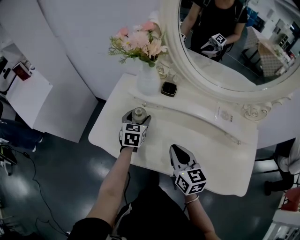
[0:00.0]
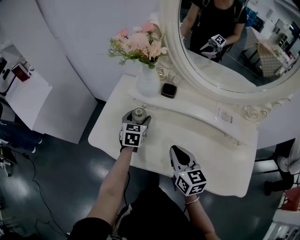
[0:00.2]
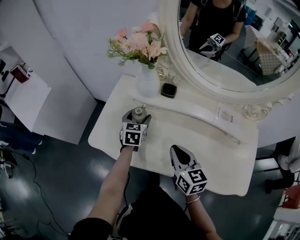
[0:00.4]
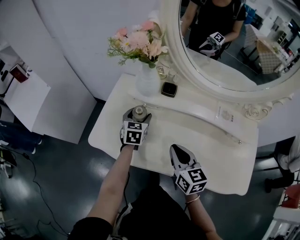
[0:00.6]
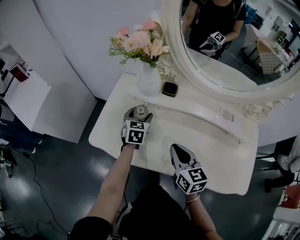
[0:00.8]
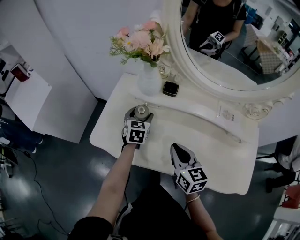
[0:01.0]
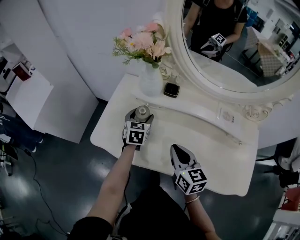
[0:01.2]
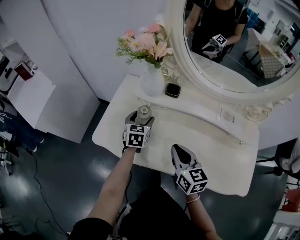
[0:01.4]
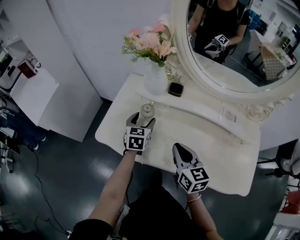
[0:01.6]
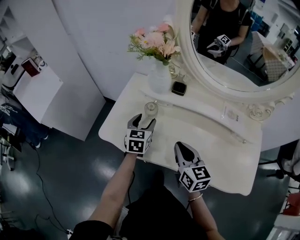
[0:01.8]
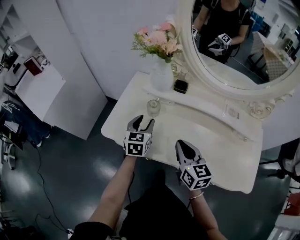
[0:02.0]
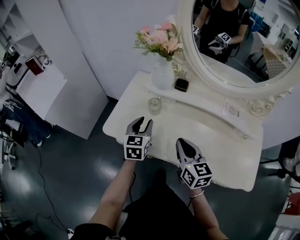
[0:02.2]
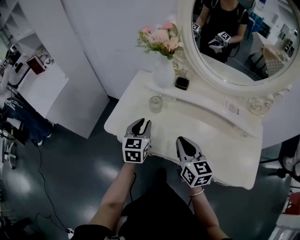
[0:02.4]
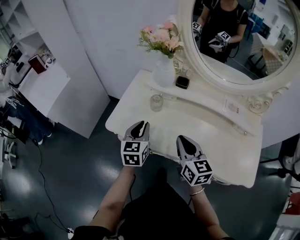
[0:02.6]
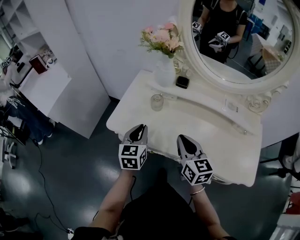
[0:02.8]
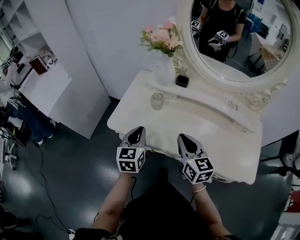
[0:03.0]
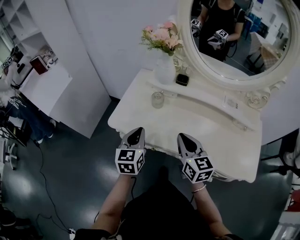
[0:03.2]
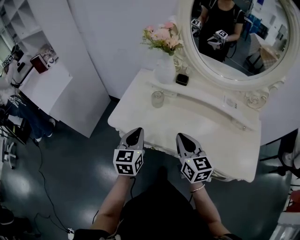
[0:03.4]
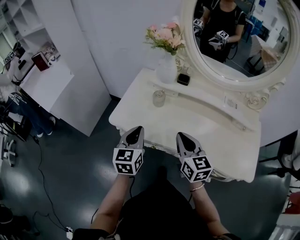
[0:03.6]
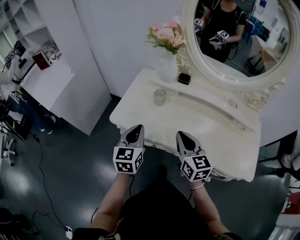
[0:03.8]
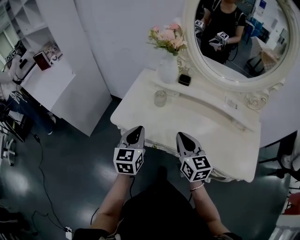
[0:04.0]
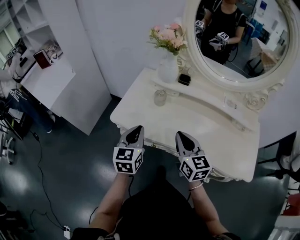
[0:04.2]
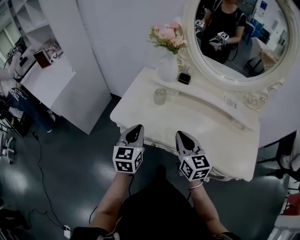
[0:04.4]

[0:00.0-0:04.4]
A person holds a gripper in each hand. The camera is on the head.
0:00.0 to 0:01.4: The grippers stay close to where they were, moving slightly.
0:01.4 to 0:03.0: The right gripper is displaced backward by about 5 cm. Meanwhile the left gripper heads backward, upward and to the left, covering some 20 cm, and closes its fingers.
0:03.0 to 0:04.4: The left gripper shifts by some 5 cm.

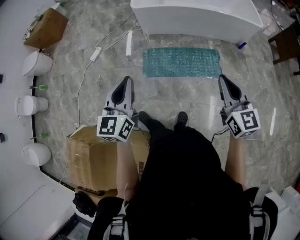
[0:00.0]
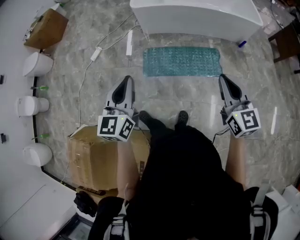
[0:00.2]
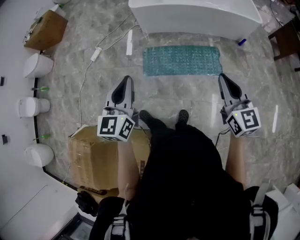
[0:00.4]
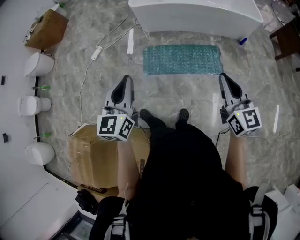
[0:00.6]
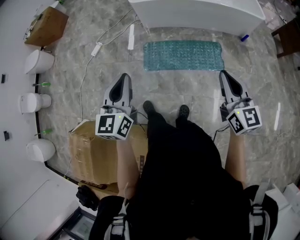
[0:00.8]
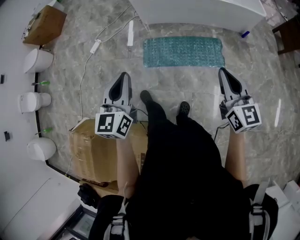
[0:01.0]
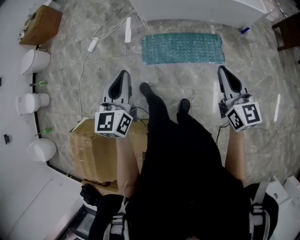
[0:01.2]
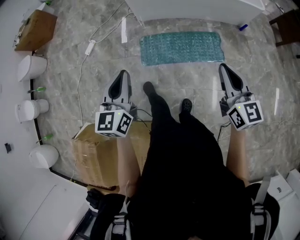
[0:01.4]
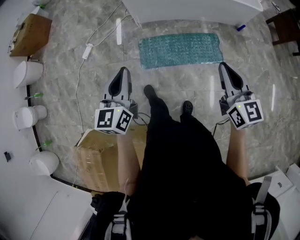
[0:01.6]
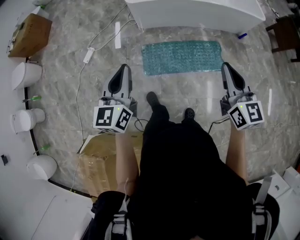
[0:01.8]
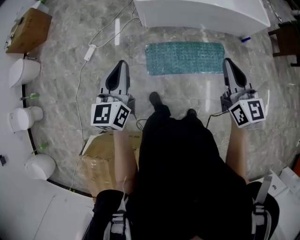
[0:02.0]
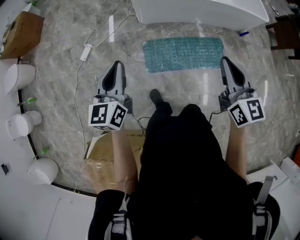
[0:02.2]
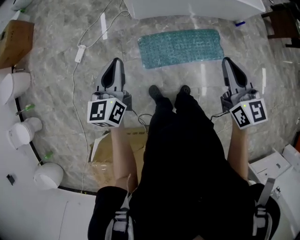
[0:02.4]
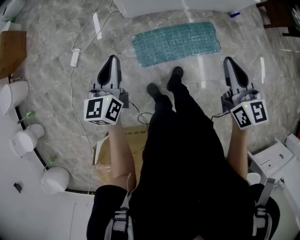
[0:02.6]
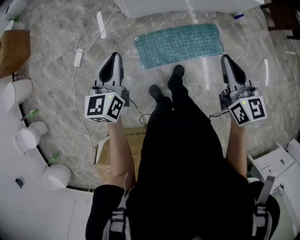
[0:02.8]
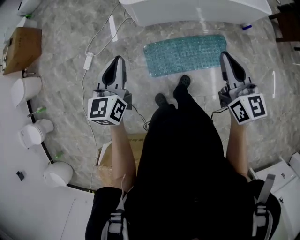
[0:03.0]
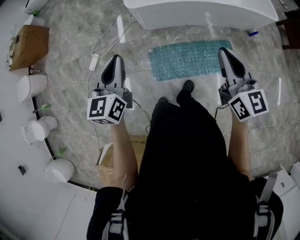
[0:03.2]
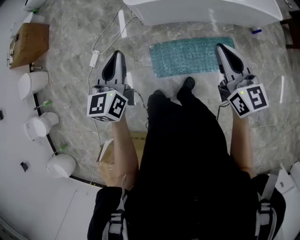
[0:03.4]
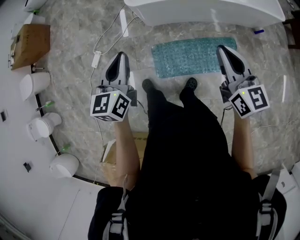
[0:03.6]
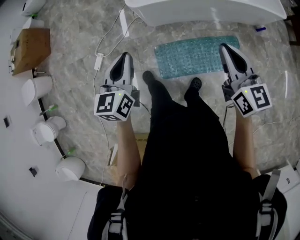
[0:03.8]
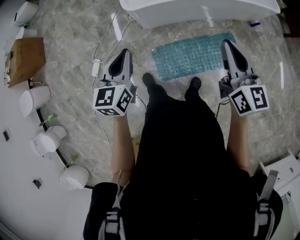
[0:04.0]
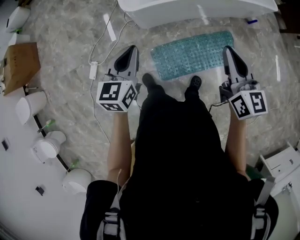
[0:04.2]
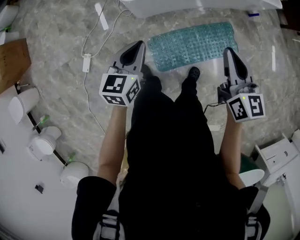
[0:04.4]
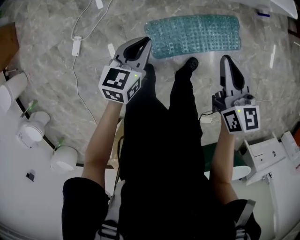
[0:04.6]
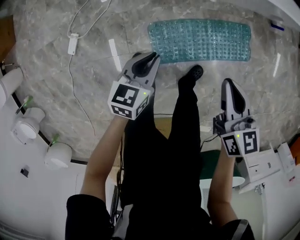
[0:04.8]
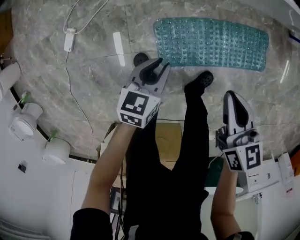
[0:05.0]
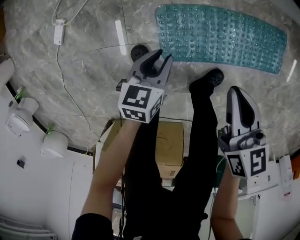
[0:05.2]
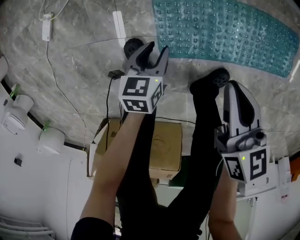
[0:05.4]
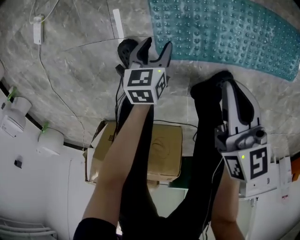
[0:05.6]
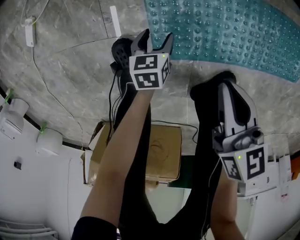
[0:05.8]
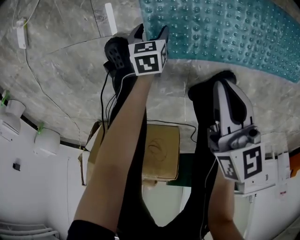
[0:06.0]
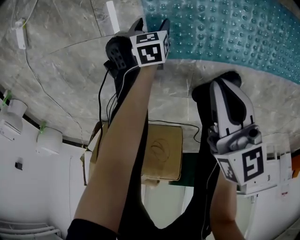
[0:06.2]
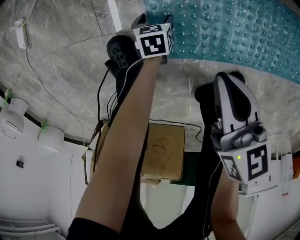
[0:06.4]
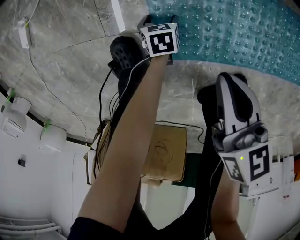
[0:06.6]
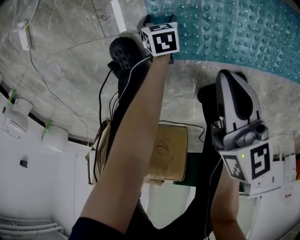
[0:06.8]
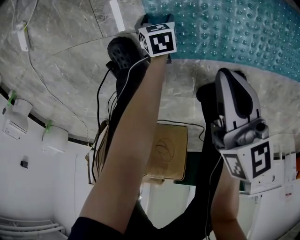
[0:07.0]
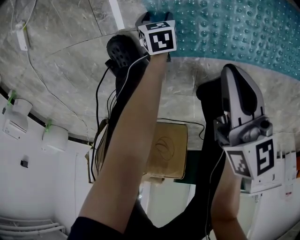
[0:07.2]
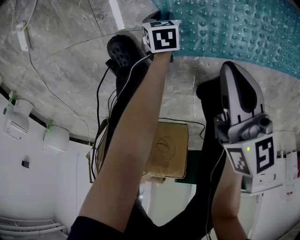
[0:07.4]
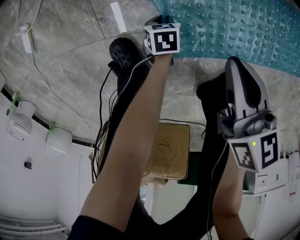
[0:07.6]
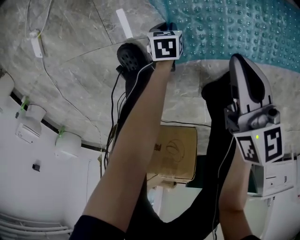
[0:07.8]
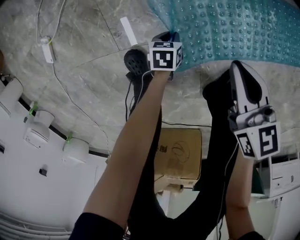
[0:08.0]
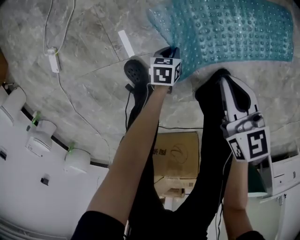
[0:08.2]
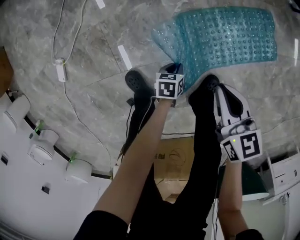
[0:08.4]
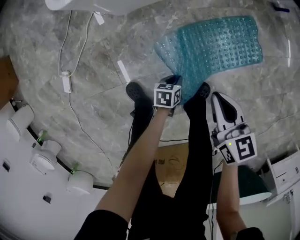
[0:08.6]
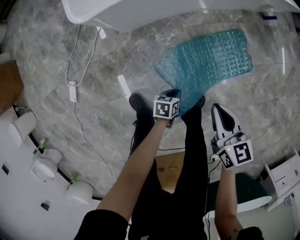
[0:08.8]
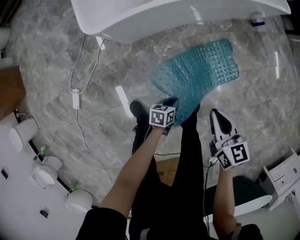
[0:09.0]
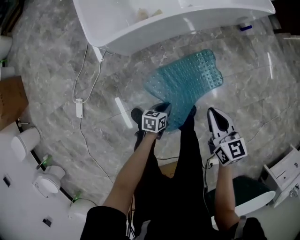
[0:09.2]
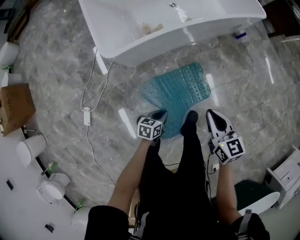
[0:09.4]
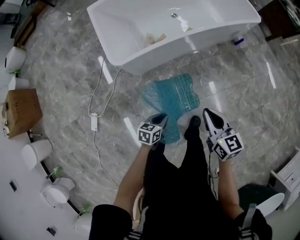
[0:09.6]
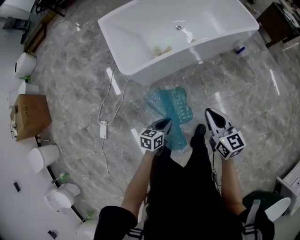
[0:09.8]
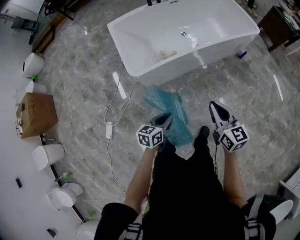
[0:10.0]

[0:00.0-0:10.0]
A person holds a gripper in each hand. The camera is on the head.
0:00.0 to 0:01.4: The left gripper shifts by approximately 5 cm.
0:01.4 to 0:02.8: Both grippers travel together forward and to the left, approximately 30 cm.
0:02.8 to 0:04.2: Both grippers travel together forward, approximately 20 cm.
0:04.2 to 0:05.8: Both grippers move downward, approximately 80 cm. The right gripper points its fingers roughly 30 degrees further downward; the left gripper tips its fingers downward by roughly 40 degrees, and opens.
0:05.8 to 0:07.2: The left gripper goes some 15 cm downward; the right gripper moves downward, some 5 cm.
0:07.2 to 0:08.6: The two grippers go about 35 cm upward. The left gripper rotates about 30 degrees, and closes up.
0:08.6 to 0:10.0: Both grippers travel together upward, roughly 50 cm. The left gripper rotates approximately 30 degrees; the right gripper turns by about 20 degrees.

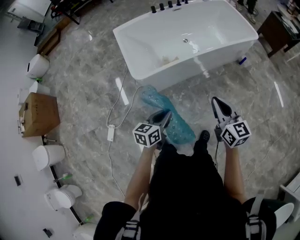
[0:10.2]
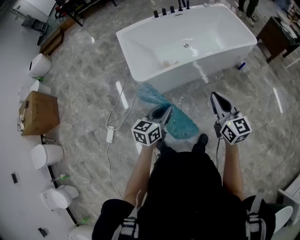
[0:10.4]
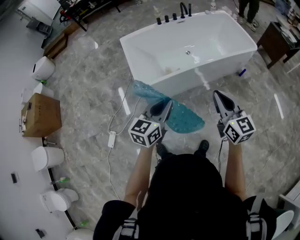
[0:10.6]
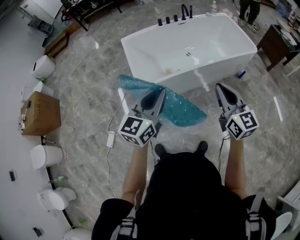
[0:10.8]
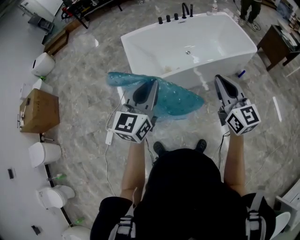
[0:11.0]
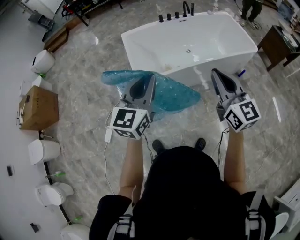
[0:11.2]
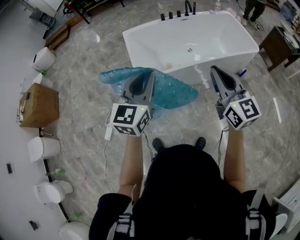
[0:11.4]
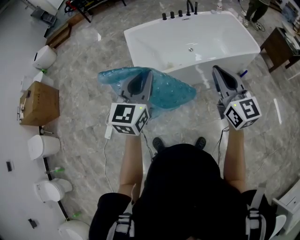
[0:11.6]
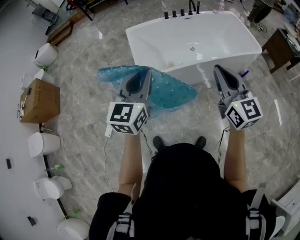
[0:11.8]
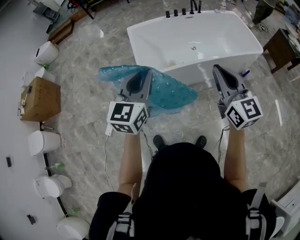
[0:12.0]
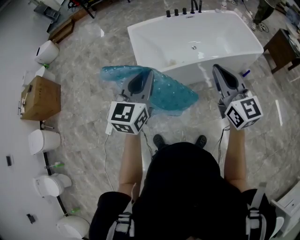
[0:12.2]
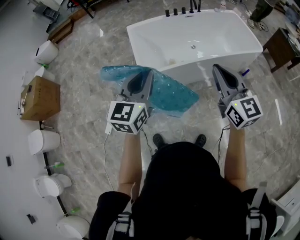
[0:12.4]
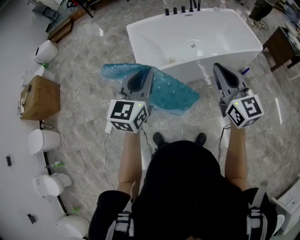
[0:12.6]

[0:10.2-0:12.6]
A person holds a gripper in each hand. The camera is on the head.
0:10.2 to 0:11.4: The right gripper goes about 20 cm upward, and turns by about 20 degrees. Meanwhile the left gripper shifts approximately 30 cm upward, and rotates about 40 degrees.
0:11.4 to 0:12.6: The grippers move only a little.

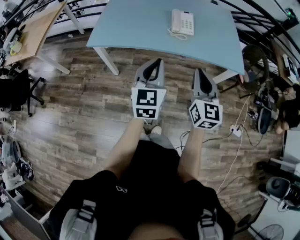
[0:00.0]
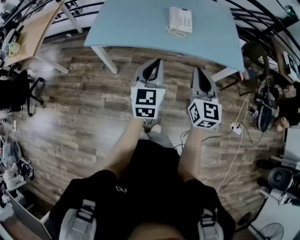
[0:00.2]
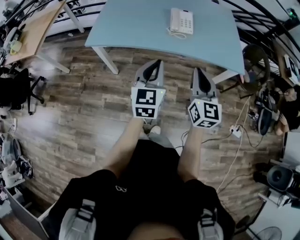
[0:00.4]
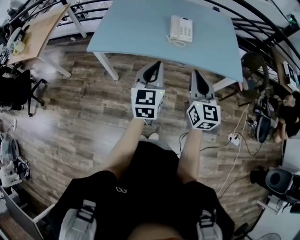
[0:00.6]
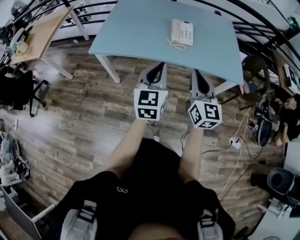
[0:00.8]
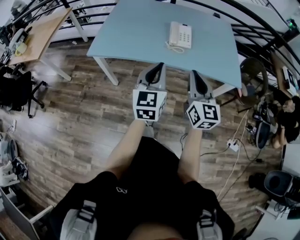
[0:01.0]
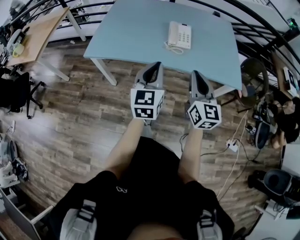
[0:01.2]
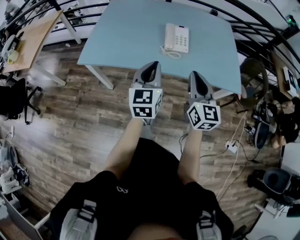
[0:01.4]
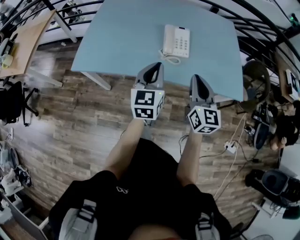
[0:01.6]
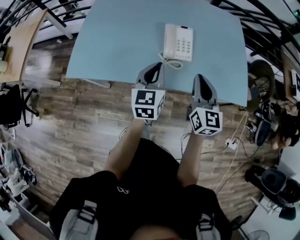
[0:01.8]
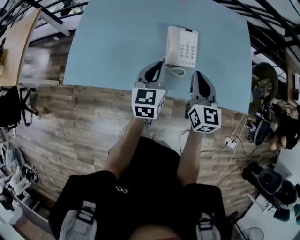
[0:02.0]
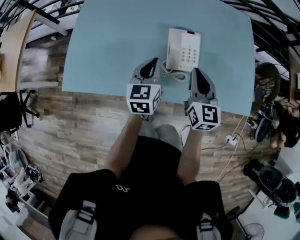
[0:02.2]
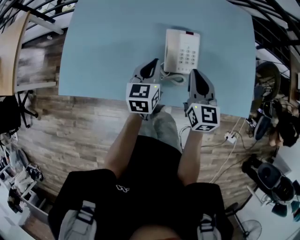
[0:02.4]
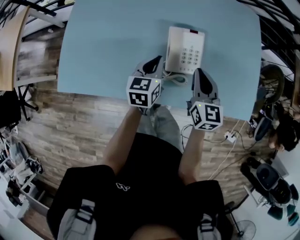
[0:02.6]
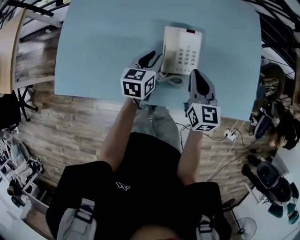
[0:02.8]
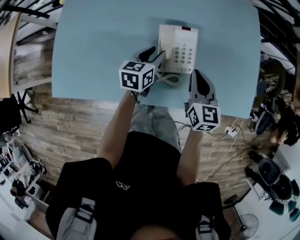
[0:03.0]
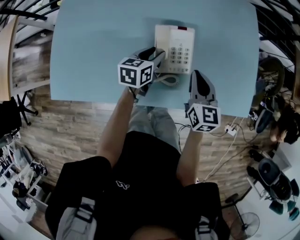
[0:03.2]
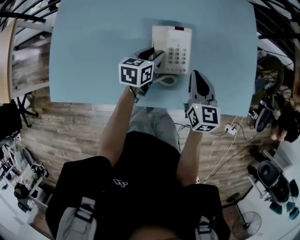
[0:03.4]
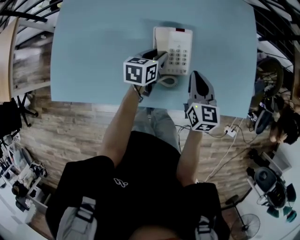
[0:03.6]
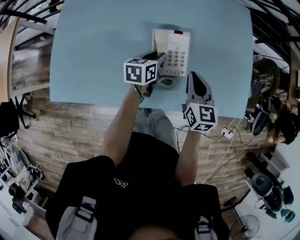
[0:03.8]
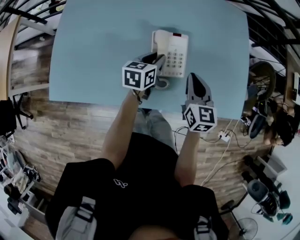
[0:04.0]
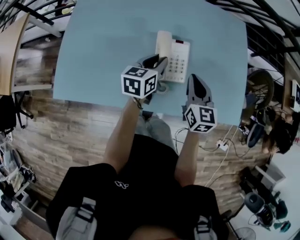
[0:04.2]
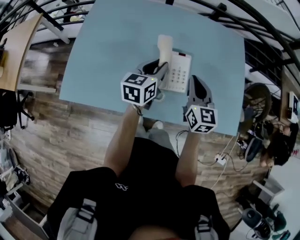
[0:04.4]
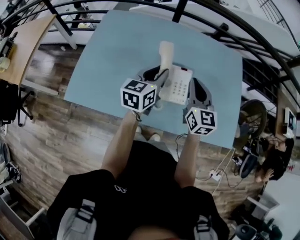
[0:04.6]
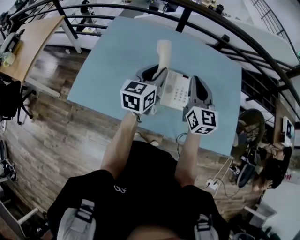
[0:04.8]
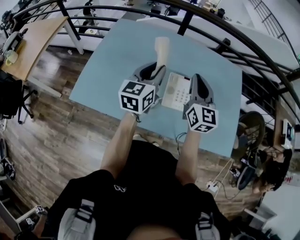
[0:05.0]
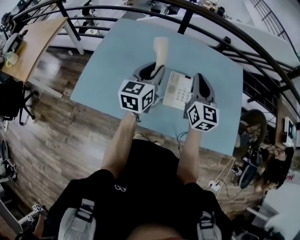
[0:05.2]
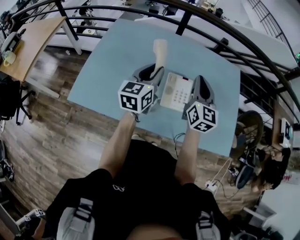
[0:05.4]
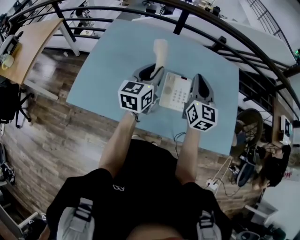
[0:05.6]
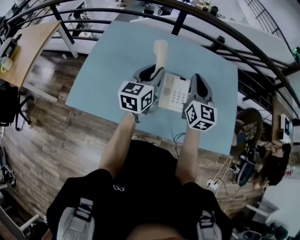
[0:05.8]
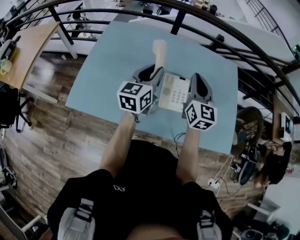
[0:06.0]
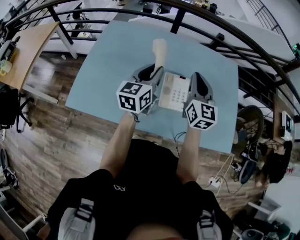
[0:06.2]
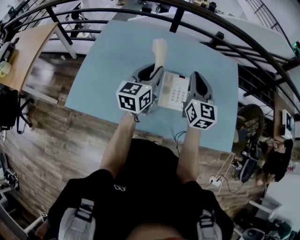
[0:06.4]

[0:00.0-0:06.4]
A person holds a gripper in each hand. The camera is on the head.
0:00.0 to 0:01.6: Both grippers travel together forward, some 20 cm.
0:01.6 to 0:03.2: Both grippers travel together forward and downward, roughly 35 cm. The right gripper swivels some 20 degrees. Meanwhile the left gripper swivels about 40 degrees, and opens.
0:03.2 to 0:04.8: The right gripper shifts approximately 20 cm upward and to the left, and swivels roughly 30 degrees; the left gripper shifts roughly 25 cm upward, and turns by approximately 30 degrees.
0:04.8 to 0:06.4: The grippers move only a little.
